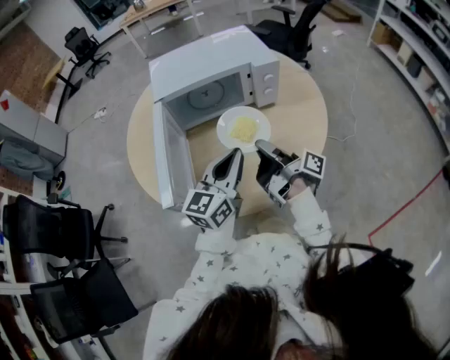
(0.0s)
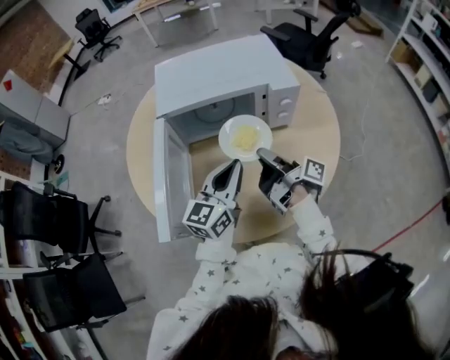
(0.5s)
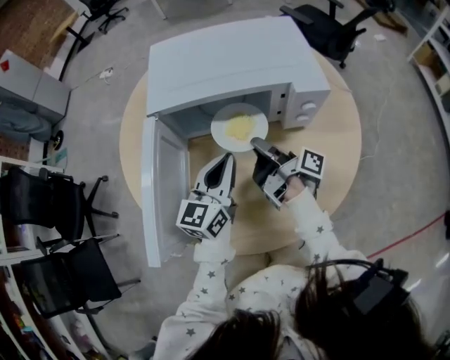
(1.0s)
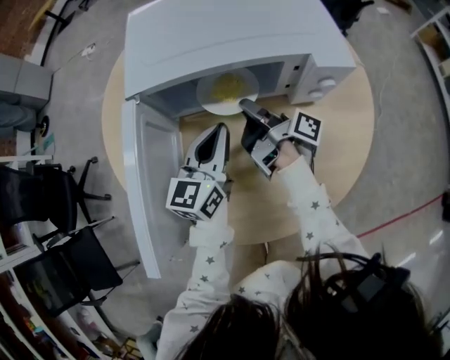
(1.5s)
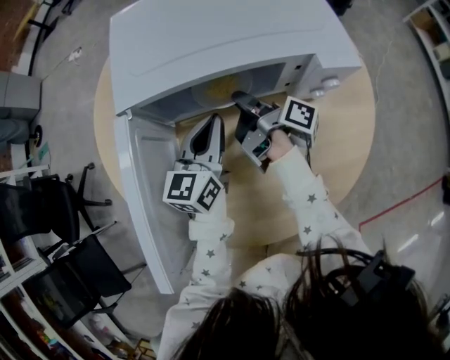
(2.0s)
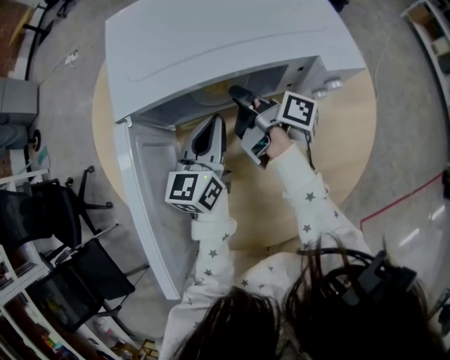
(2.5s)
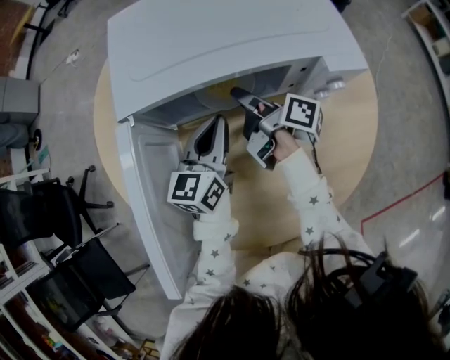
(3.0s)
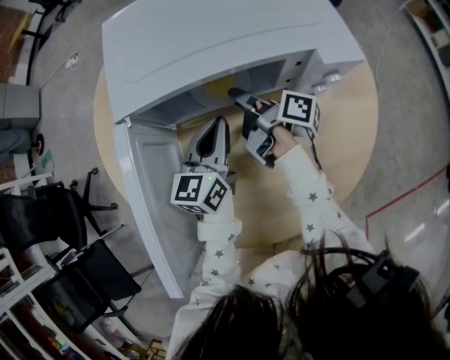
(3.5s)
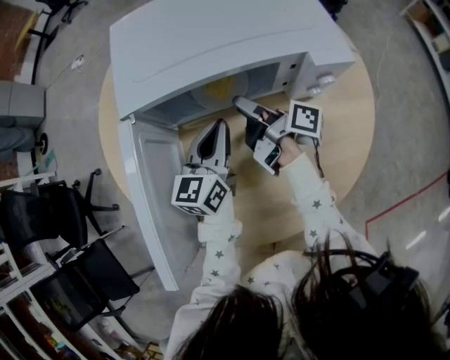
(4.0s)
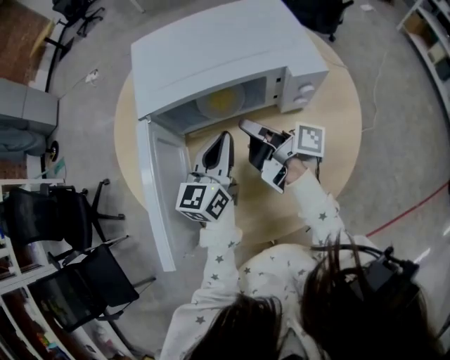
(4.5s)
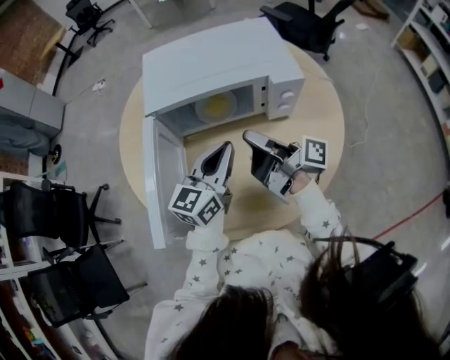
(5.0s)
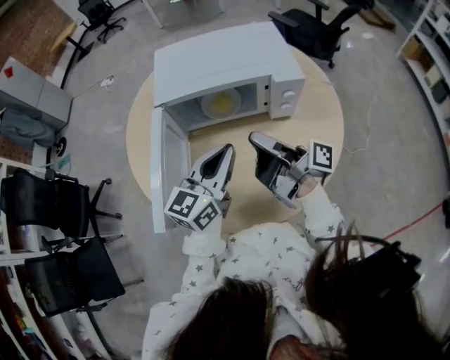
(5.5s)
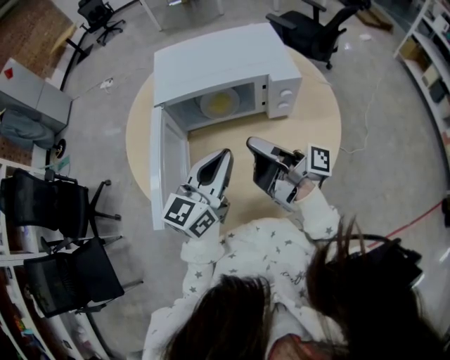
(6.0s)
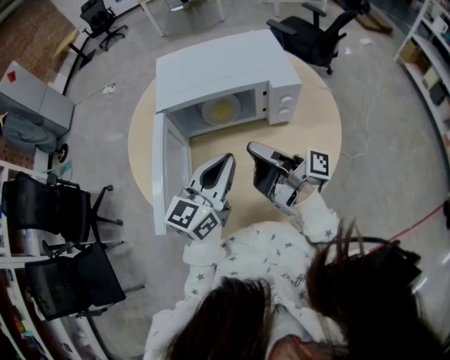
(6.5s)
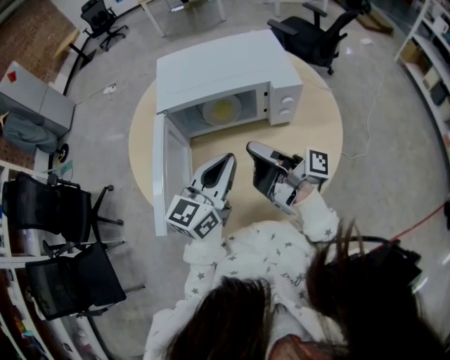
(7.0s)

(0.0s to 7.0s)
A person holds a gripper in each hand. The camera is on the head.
0.0s - 2.0s: The left gripper shifts by roughly 30 cm.
3.5s - 5.0s: The left gripper heads upward, covering about 10 cm.
5.0s - 7.0s: The left gripper moves approximately 10 cm.

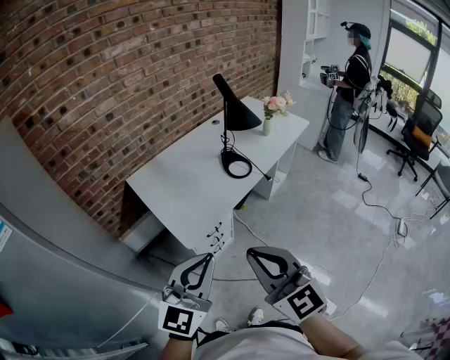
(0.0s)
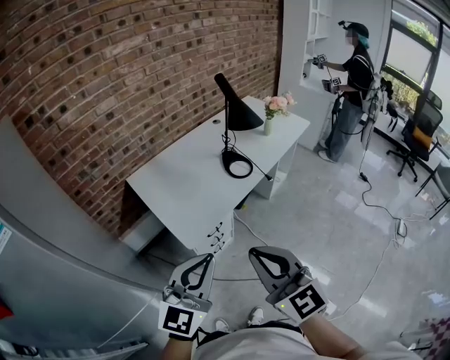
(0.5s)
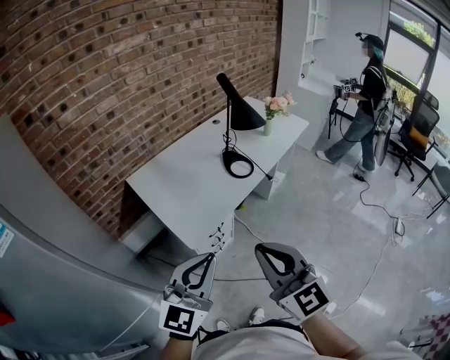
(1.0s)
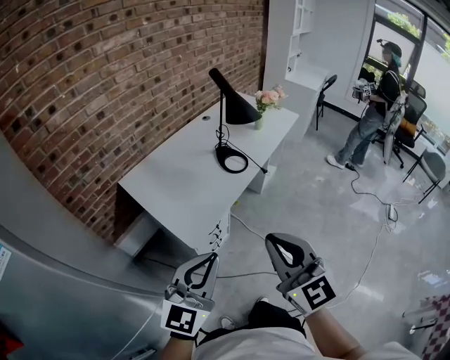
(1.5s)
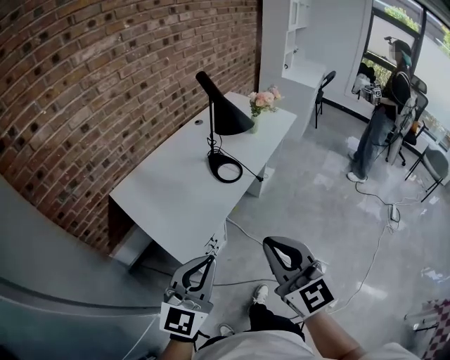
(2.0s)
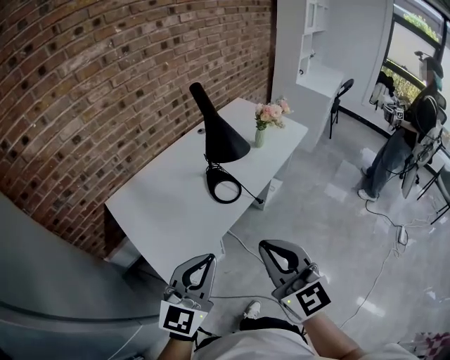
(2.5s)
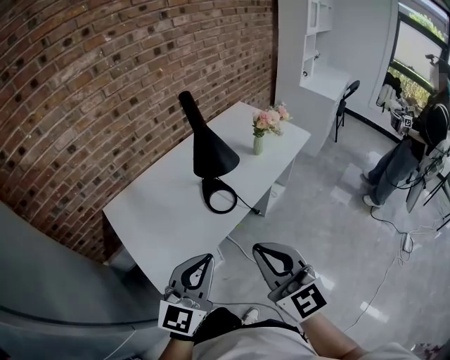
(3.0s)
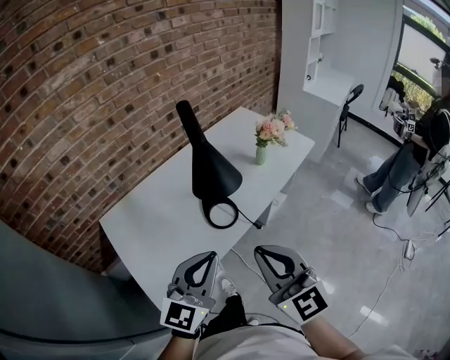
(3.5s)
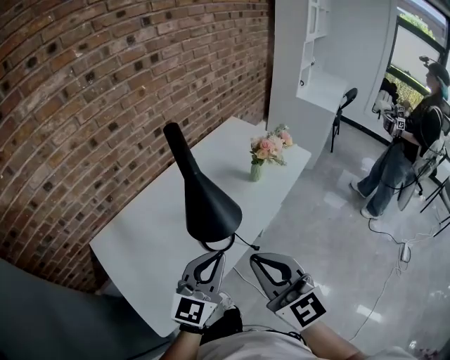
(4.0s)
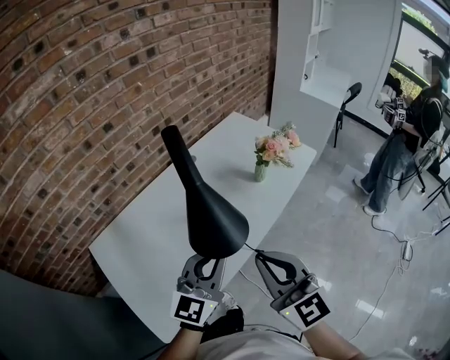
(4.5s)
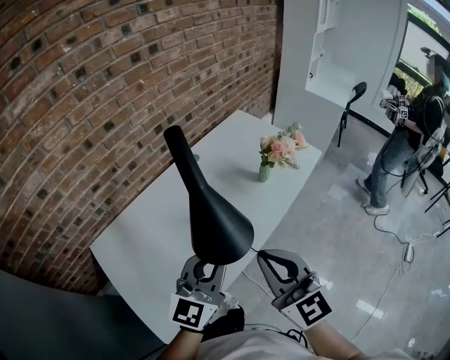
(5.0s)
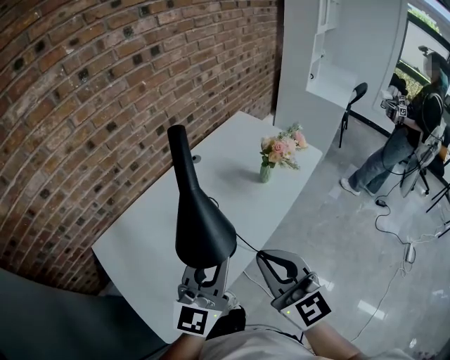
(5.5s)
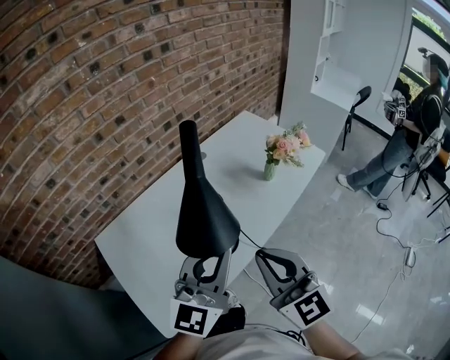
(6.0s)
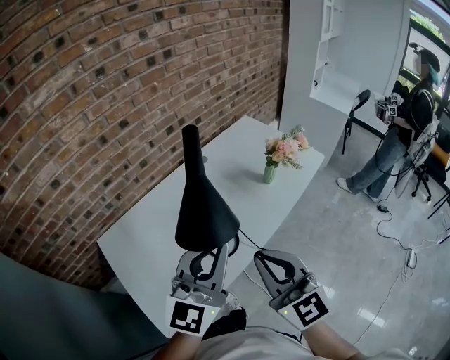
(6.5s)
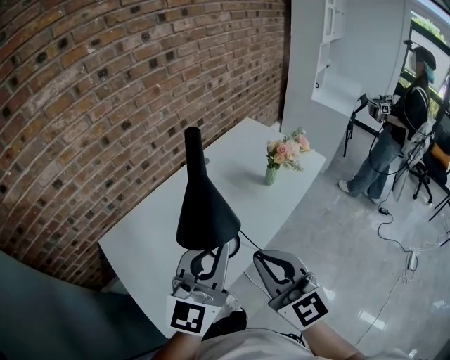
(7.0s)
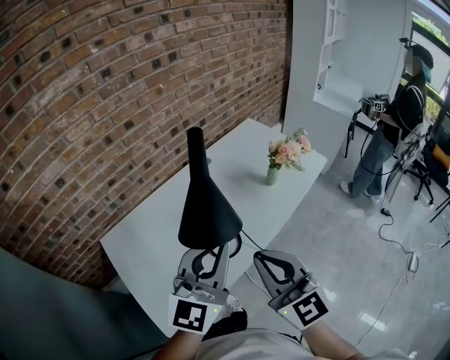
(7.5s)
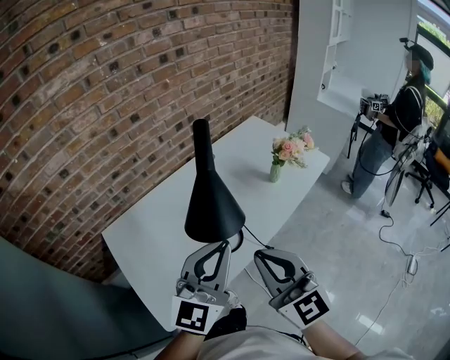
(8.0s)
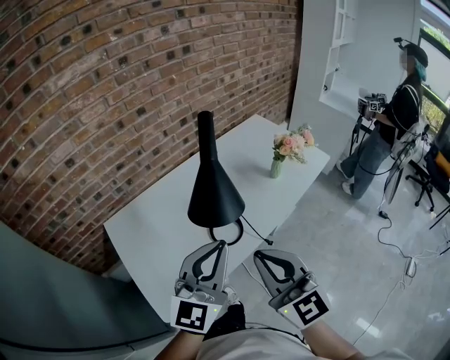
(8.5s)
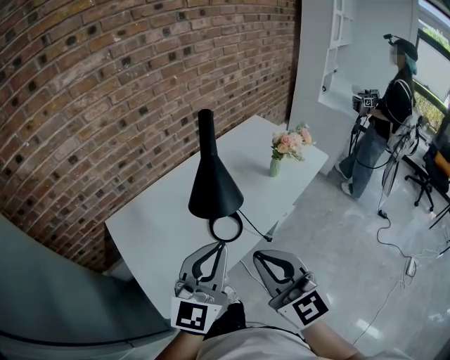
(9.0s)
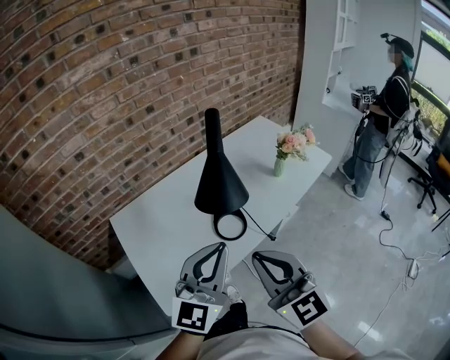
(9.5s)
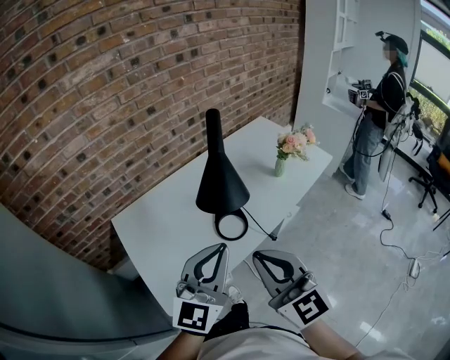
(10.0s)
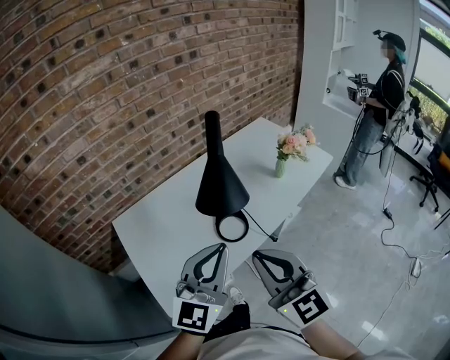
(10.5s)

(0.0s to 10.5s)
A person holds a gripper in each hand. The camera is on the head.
0.0s - 2.0s: The grippers both shift forward by roughly 10 cm.
2.0s - 4.0s: The left gripper shifts roughly 40 cm forward and to the right. The right gripper travels forward by roughly 30 cm.
4.0s - 6.5s: The left gripper heads upward, covering some 10 cm.
6.5s - 8.5s: The right gripper shifts by roughly 5 cm. Meanwhile the left gripper goes roughly 5 cm backward.
8.5s - 10.5s: The grippers move only a little.

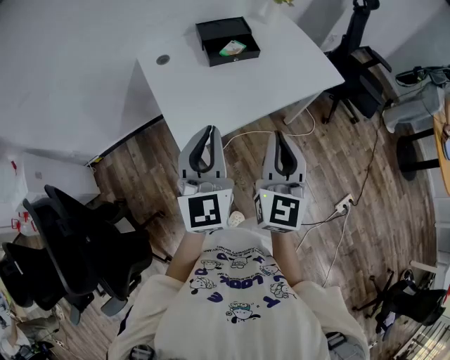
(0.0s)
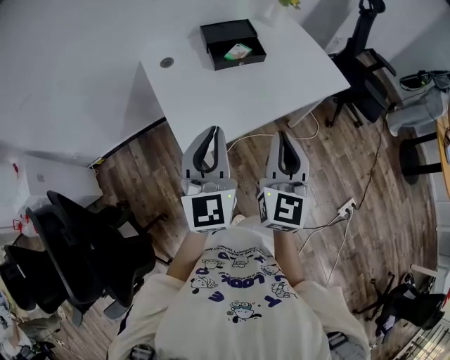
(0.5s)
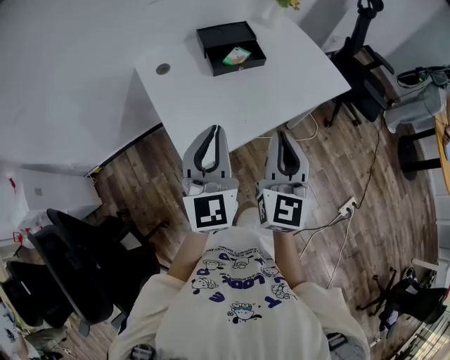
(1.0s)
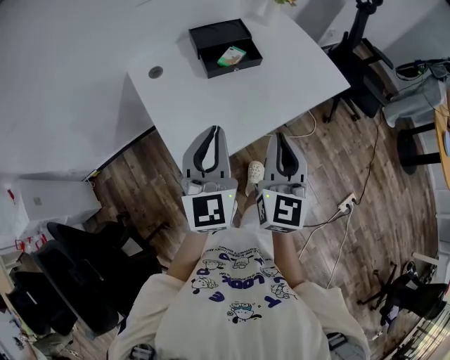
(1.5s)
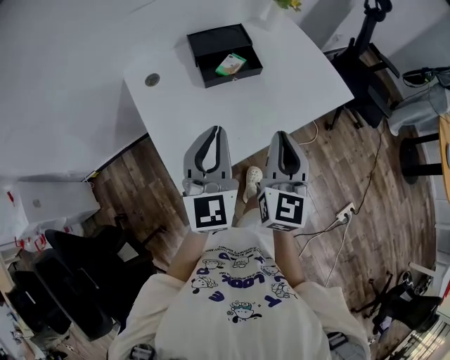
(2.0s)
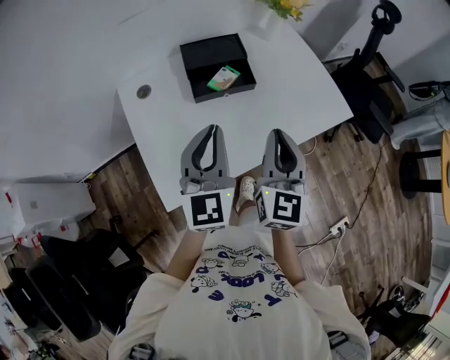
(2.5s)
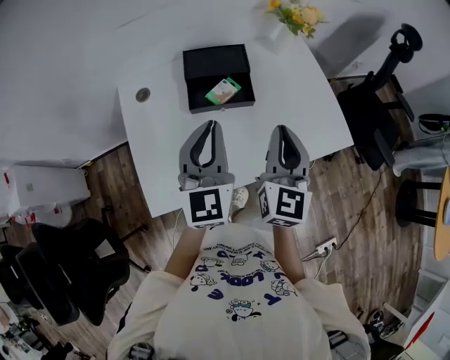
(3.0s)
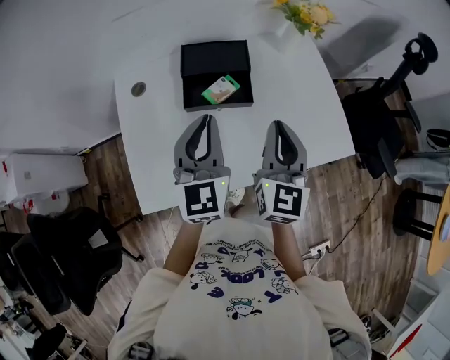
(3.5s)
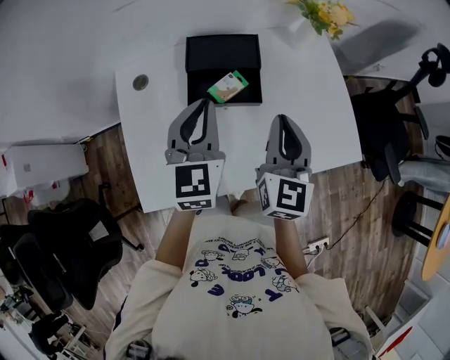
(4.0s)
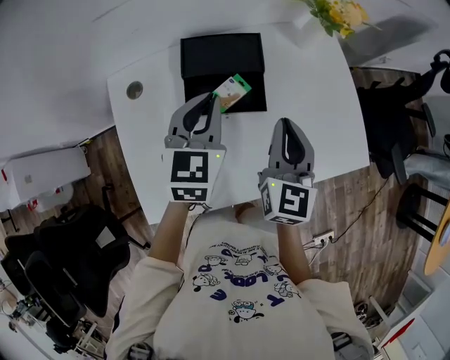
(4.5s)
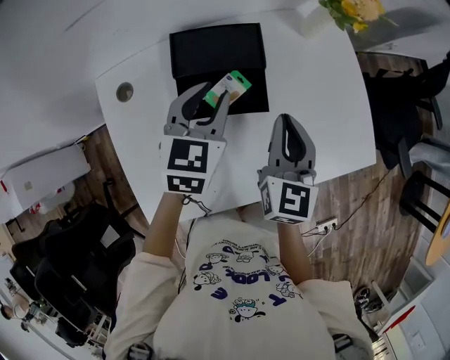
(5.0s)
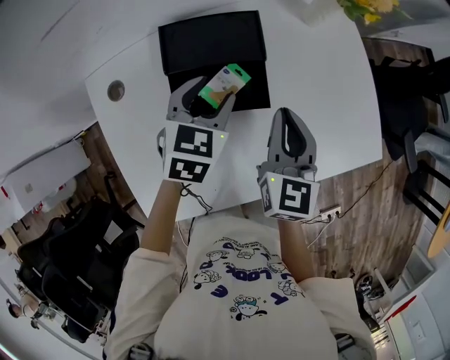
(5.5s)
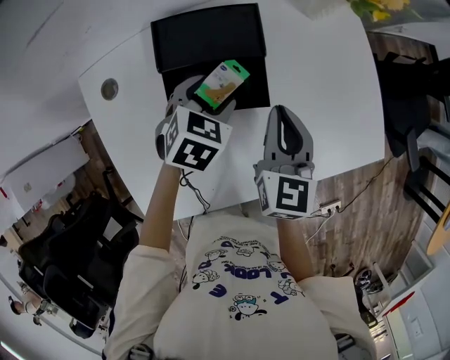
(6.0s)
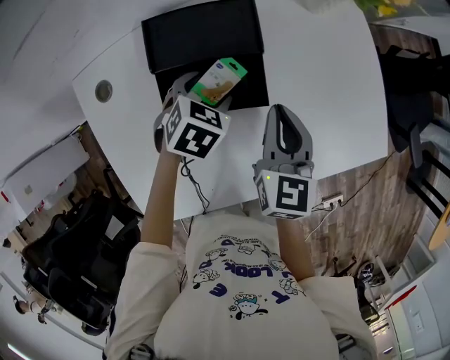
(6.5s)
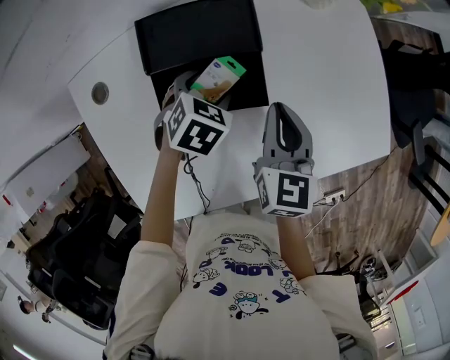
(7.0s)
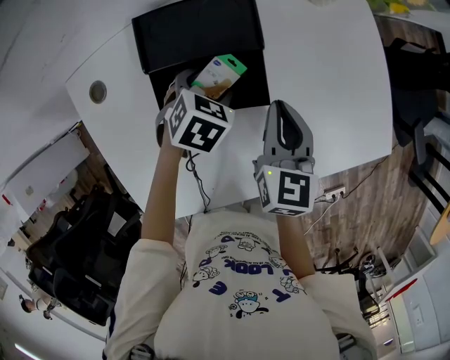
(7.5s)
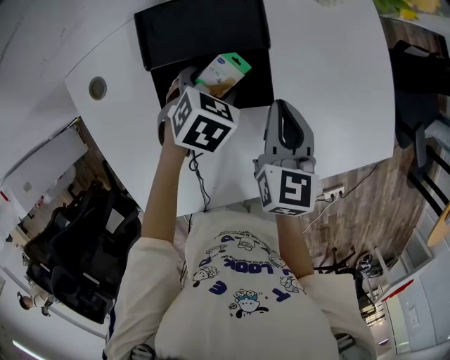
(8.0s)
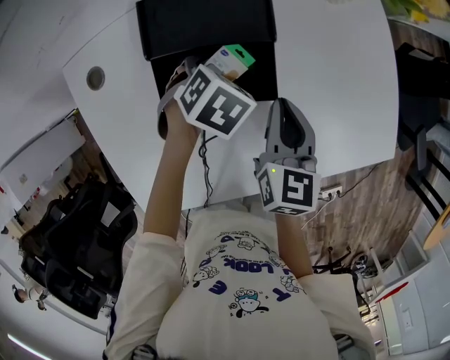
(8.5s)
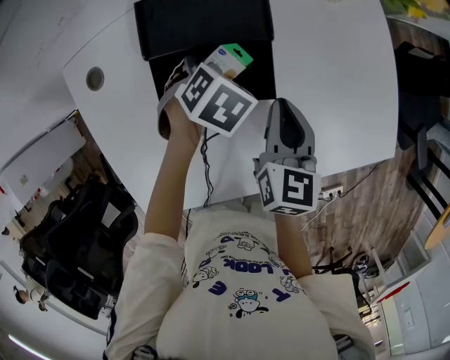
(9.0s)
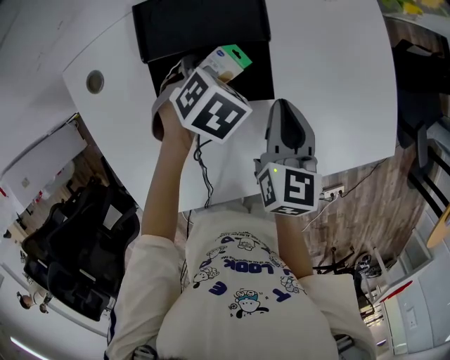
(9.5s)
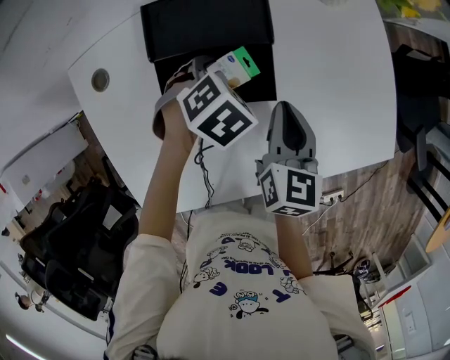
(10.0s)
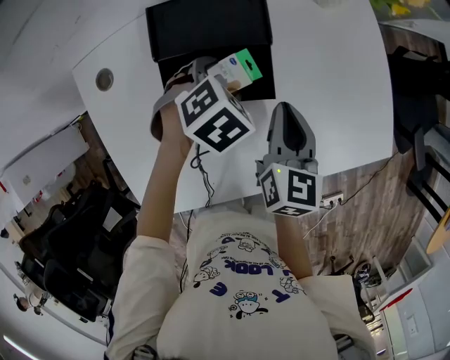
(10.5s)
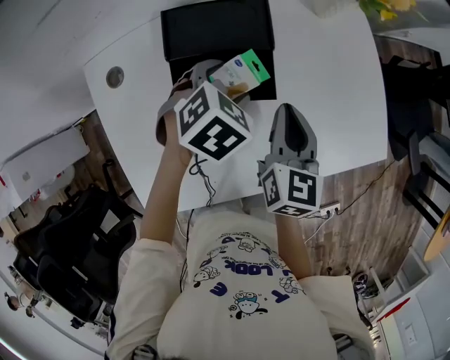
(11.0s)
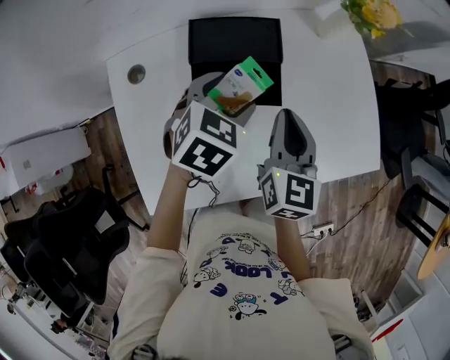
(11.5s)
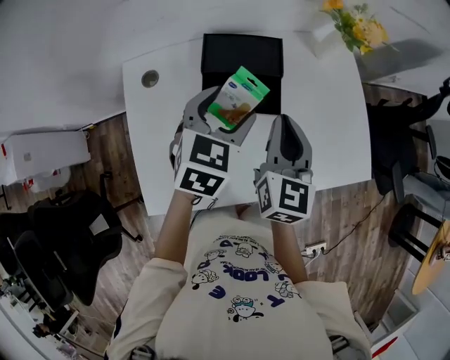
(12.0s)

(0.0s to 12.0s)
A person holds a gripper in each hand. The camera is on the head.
0.0s - 2.0s: Both grippers travel together forward, approximately 15 cm.
2.0s - 4.0s: The two grippers go about 25 cm forward.
4.0s - 6.0s: The left gripper is displaced downward and forward by approximately 25 cm, tips its fingers downward by about 40 degrees, and opens. The right gripper shifts about 15 cm downward and forward.
6.0s - 8.0s: The left gripper shifts roughly 5 cm downward.
8.0s - 10.0s: The grippers stay close to where they were, moving slightly.
10.0s - 12.0s: The two grippers go about 15 cm upward. The right gripper swivels about 20 degrees, while the left gripper tips its fingers upward by about 40 degrees.
